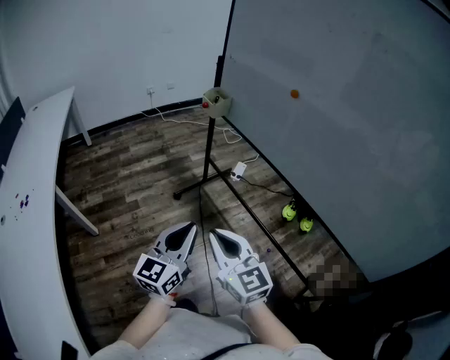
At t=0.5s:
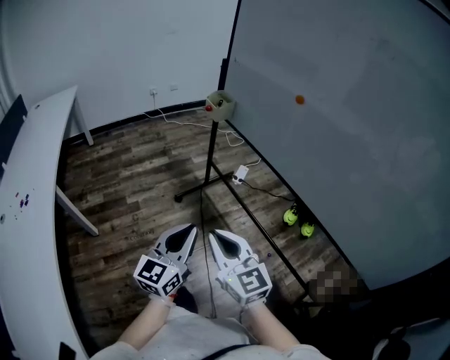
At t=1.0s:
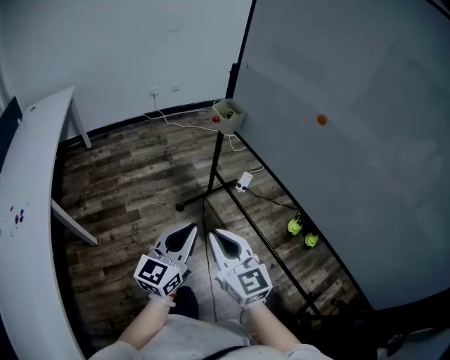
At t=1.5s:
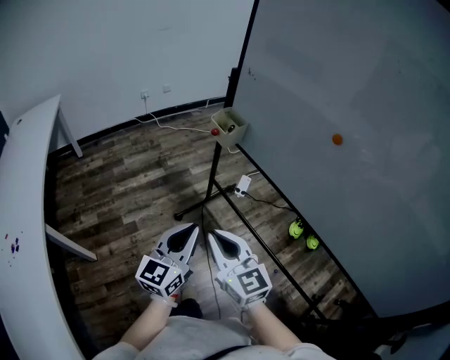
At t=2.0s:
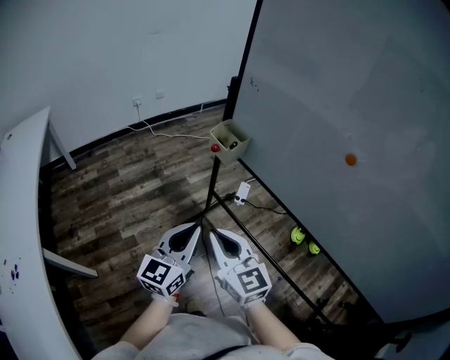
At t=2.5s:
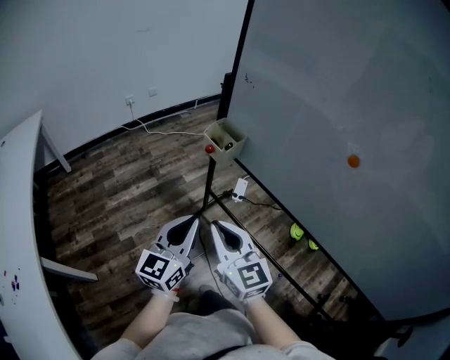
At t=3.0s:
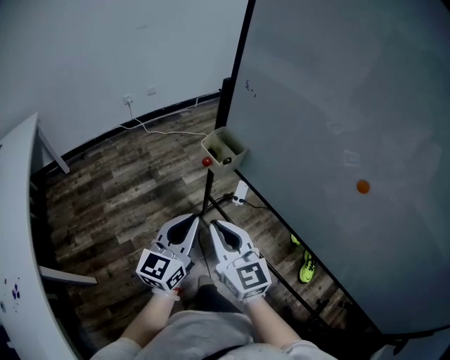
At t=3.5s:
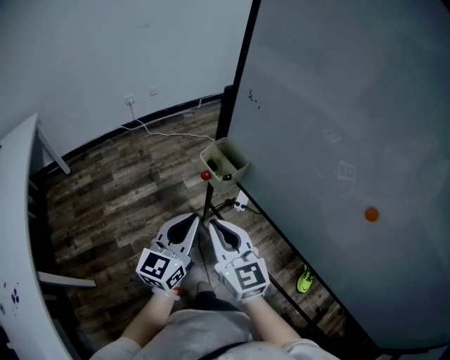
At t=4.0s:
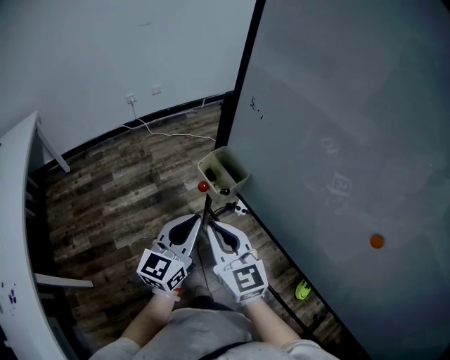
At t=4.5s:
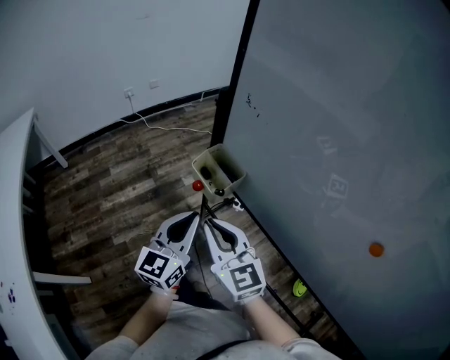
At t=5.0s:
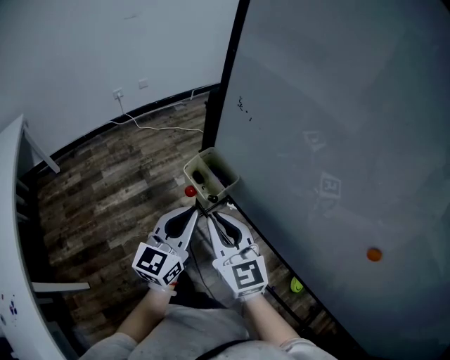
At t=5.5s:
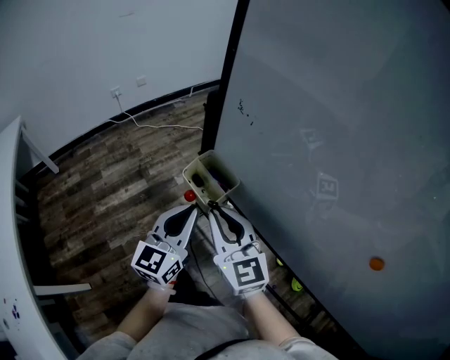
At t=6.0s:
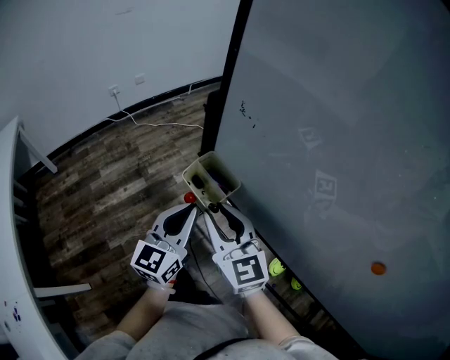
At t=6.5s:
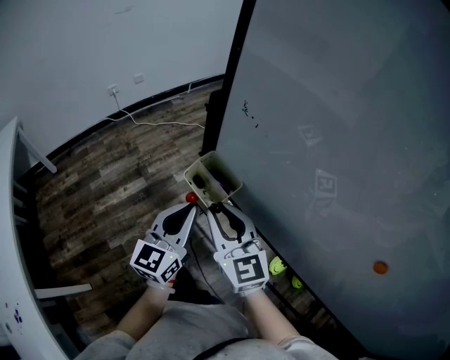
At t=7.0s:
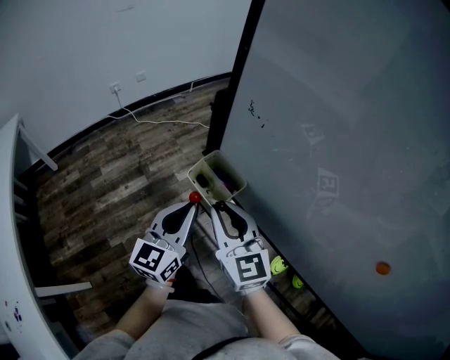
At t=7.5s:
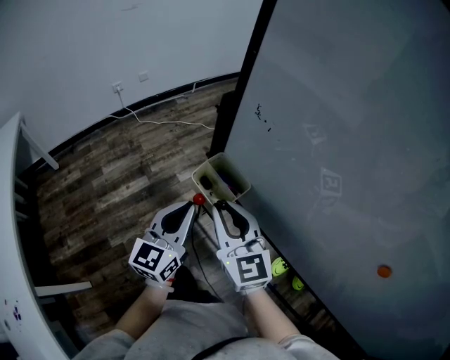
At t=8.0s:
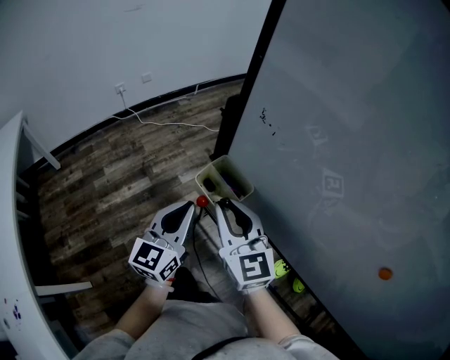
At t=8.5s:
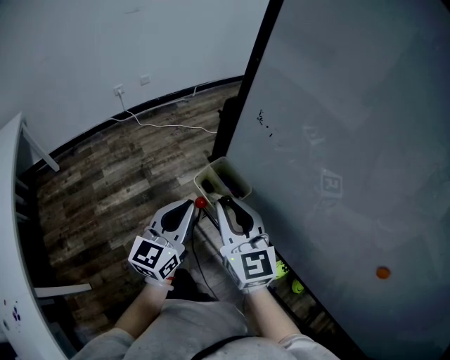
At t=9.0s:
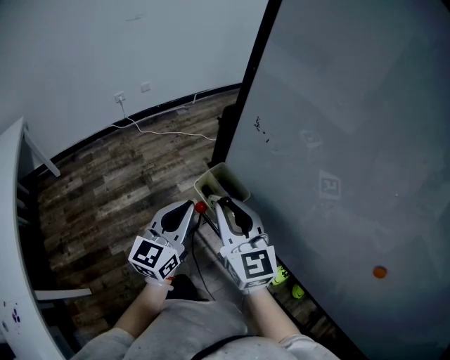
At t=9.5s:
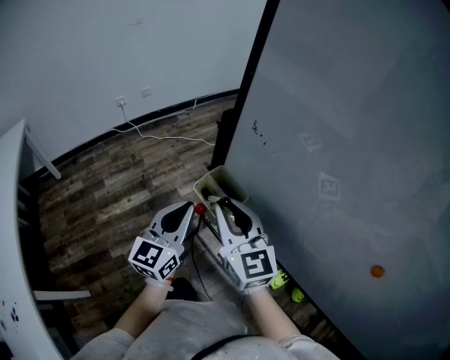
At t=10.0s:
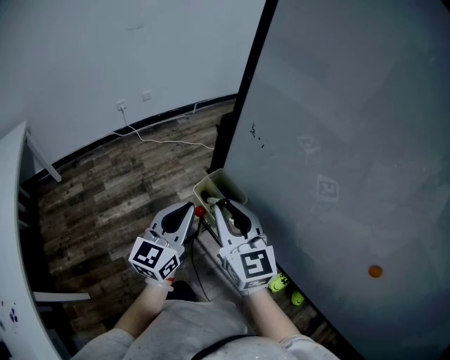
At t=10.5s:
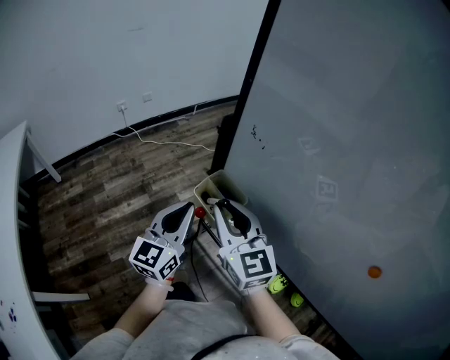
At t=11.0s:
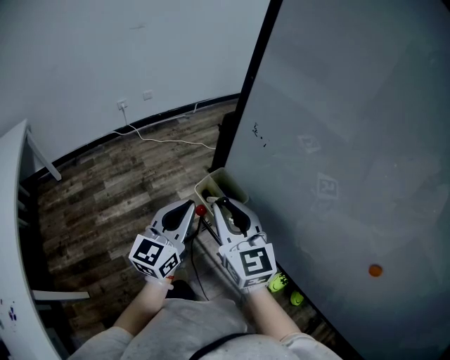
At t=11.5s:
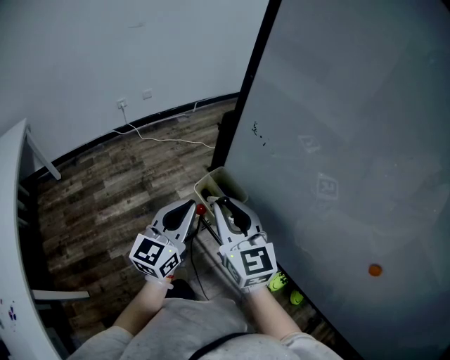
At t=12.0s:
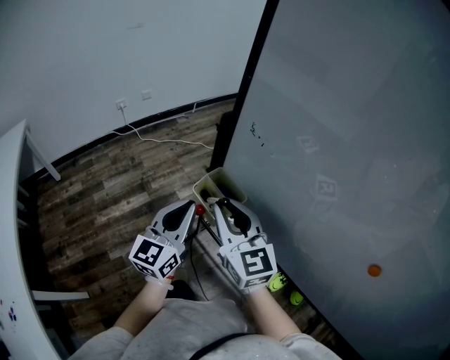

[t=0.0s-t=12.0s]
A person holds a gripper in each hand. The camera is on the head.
t=0.0s to t=2.0s: Both grippers move forward, roughly 35 cm.
t=2.0s to t=4.0s: The two grippers go roughly 20 cm forward.
t=4.0s to t=6.0s: Both grippers travel together forward, about 10 cm. The right gripper opens.
t=6.0s to t=10.0s: The grippers make only small movements.
t=10.0s to t=12.0s: Both grippers stay about where they are.

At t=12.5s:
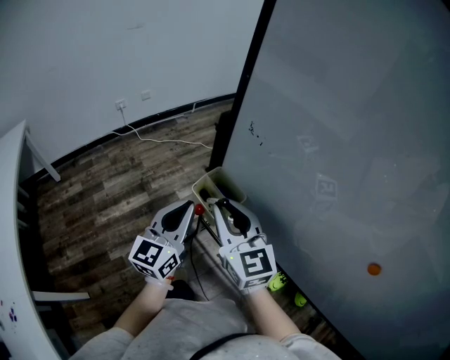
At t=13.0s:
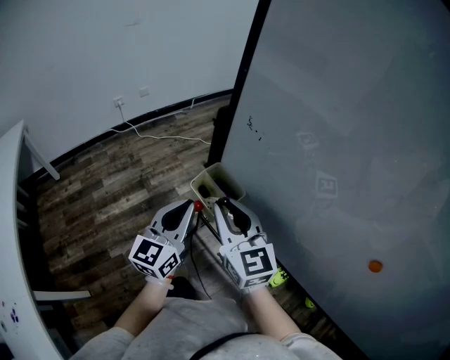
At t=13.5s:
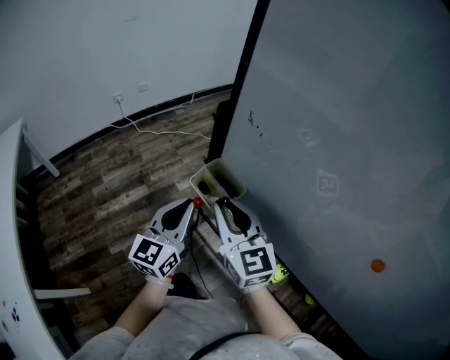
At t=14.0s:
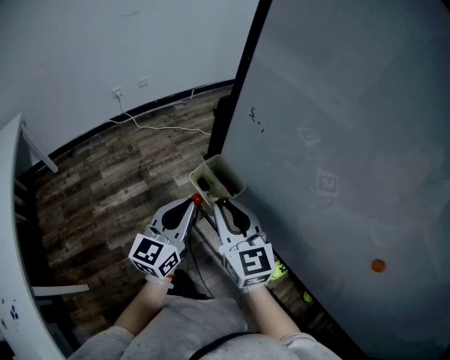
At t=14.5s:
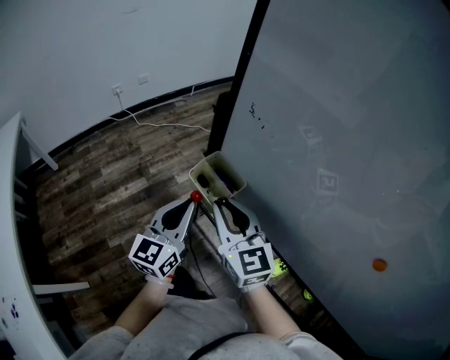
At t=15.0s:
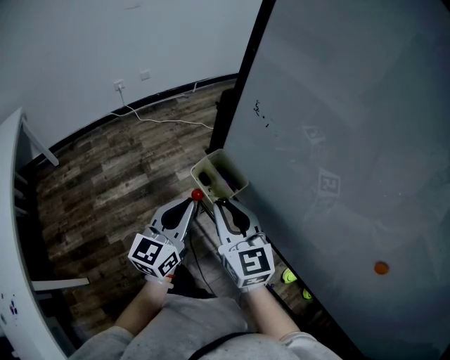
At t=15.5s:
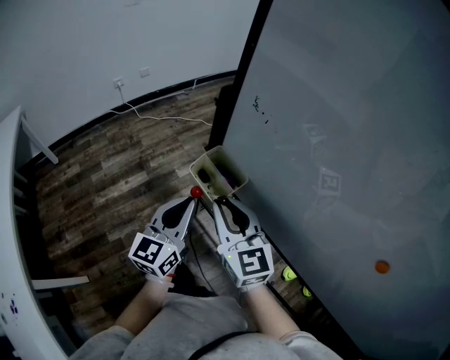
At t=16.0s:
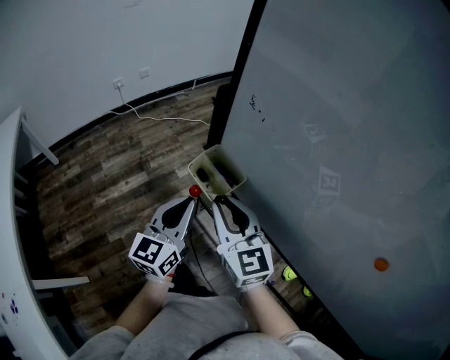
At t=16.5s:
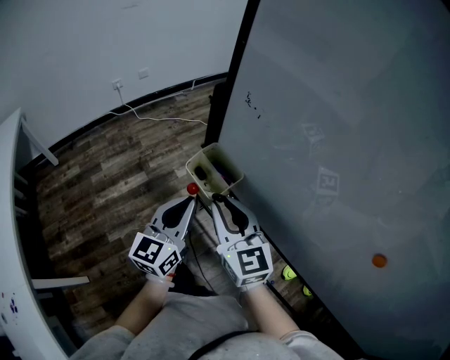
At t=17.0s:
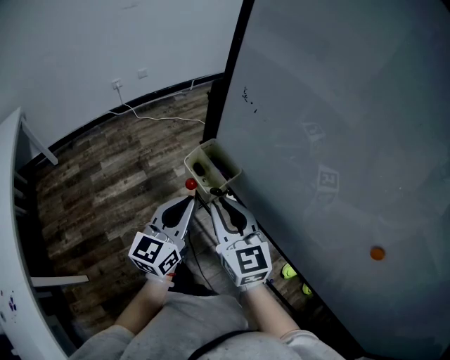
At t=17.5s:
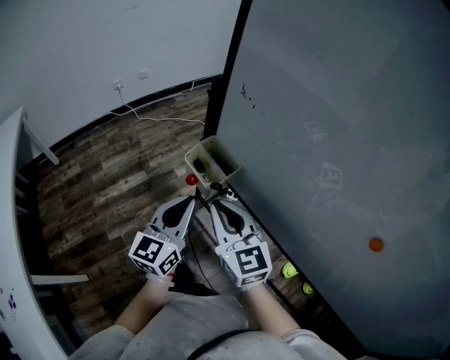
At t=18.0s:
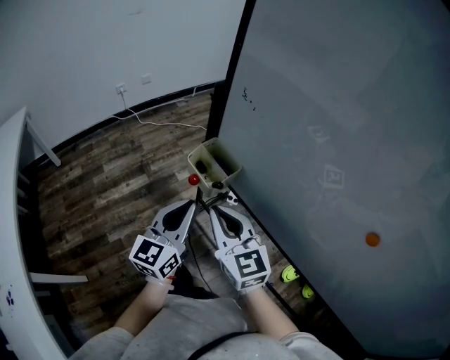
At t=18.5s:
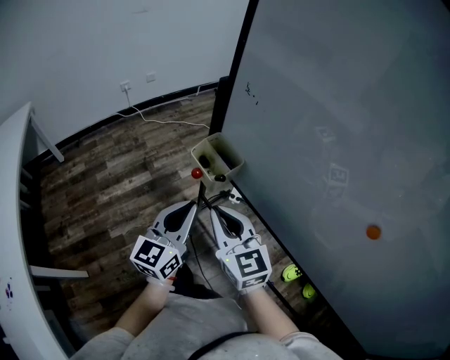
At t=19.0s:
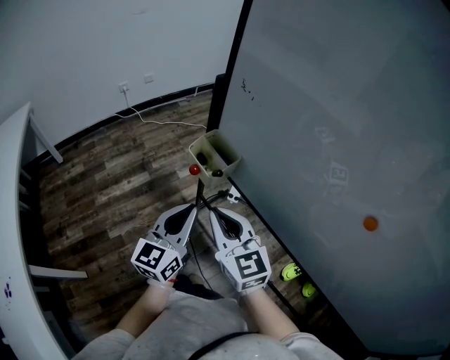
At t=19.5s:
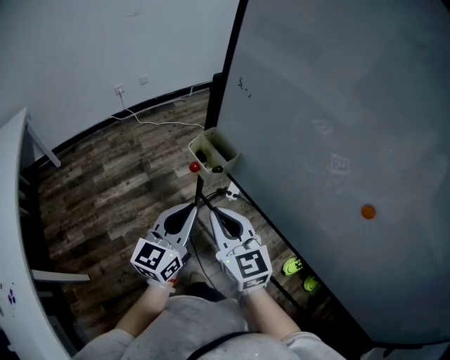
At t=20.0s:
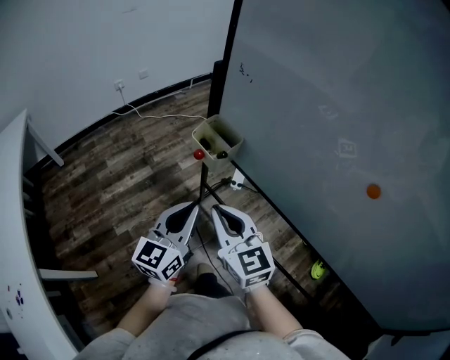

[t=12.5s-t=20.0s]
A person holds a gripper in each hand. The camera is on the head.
t=12.5s to t=16.5s: The grippers move only a little.
t=16.5s to t=18.0s: The right gripper goes approximately 5 cm backward.
t=18.0s to t=20.0s: The two grippers go roughly 10 cm backward.

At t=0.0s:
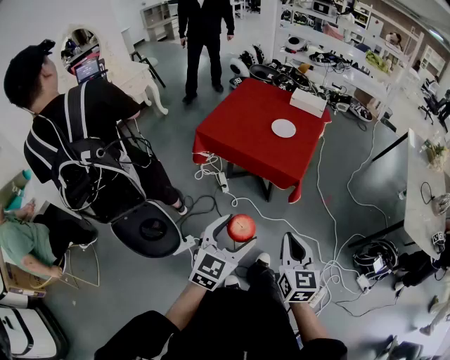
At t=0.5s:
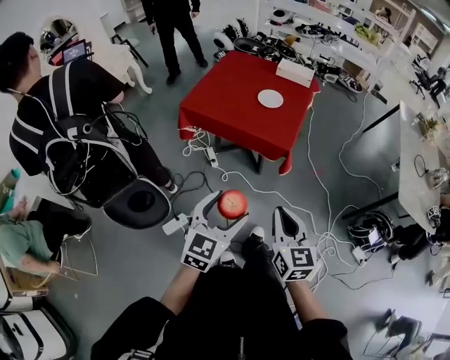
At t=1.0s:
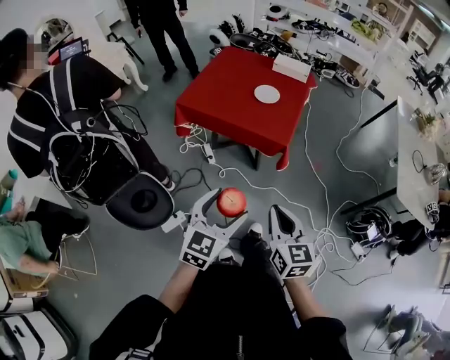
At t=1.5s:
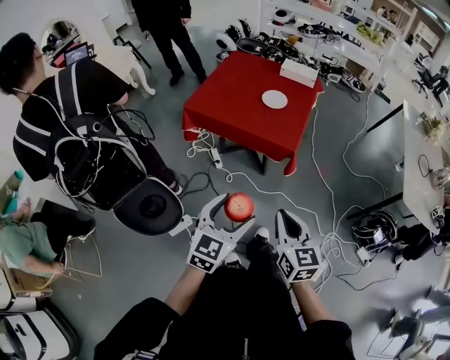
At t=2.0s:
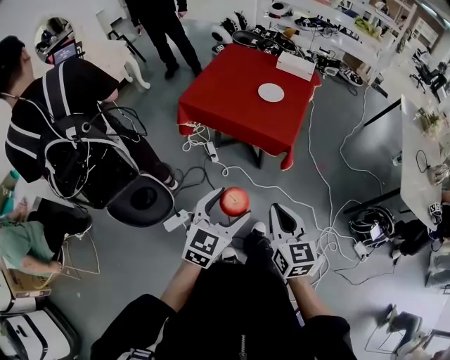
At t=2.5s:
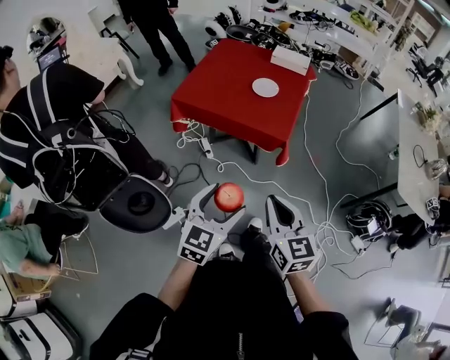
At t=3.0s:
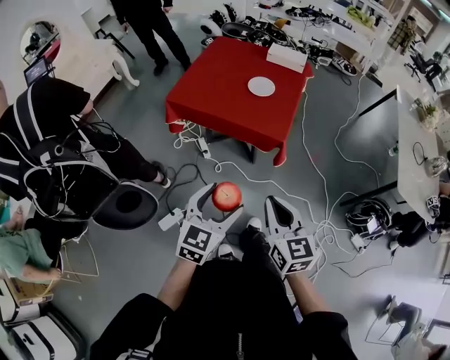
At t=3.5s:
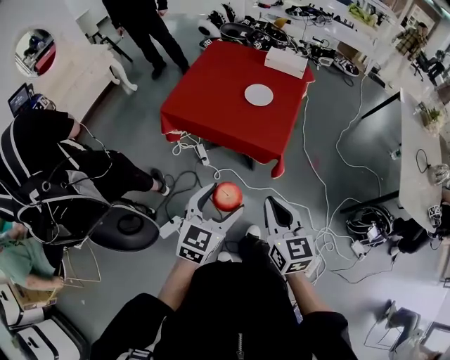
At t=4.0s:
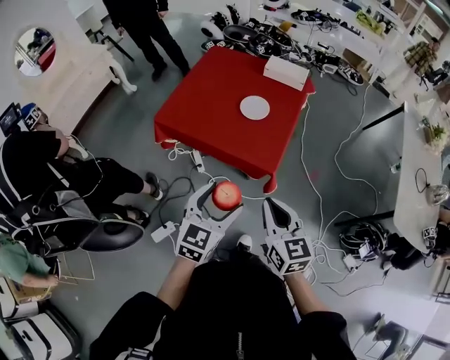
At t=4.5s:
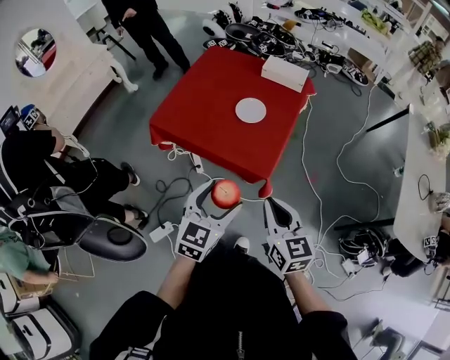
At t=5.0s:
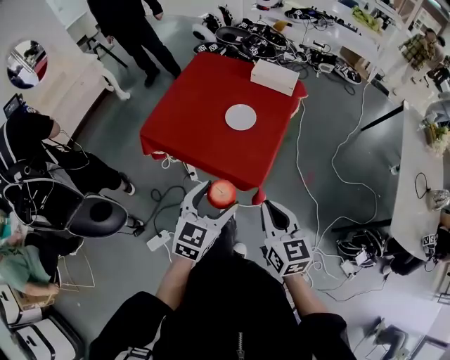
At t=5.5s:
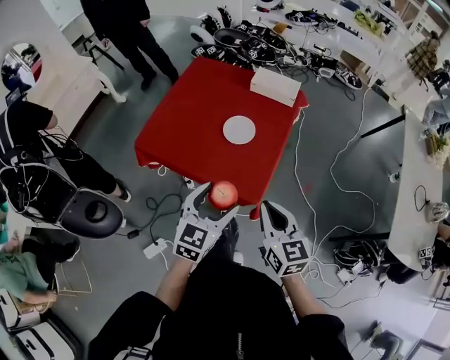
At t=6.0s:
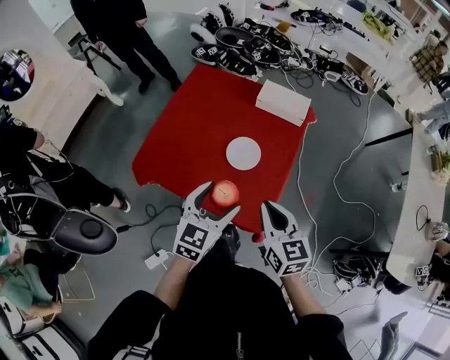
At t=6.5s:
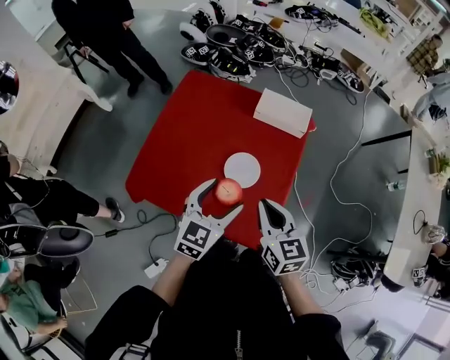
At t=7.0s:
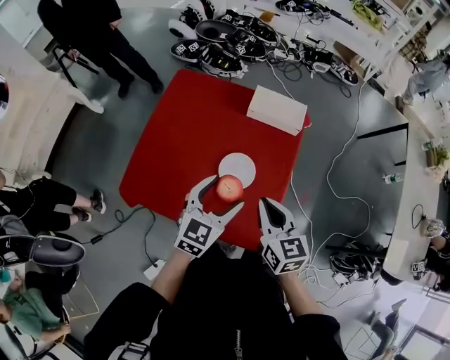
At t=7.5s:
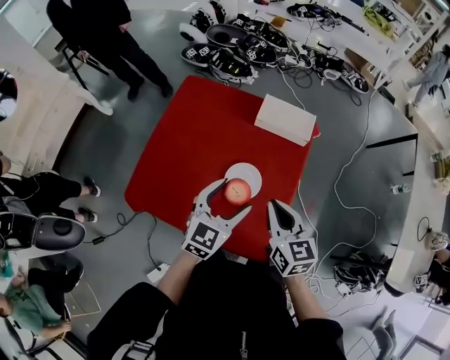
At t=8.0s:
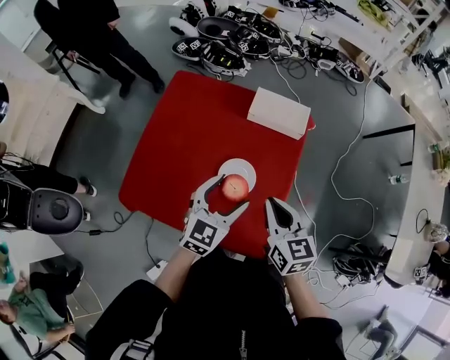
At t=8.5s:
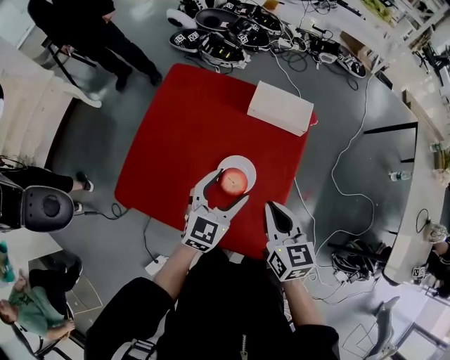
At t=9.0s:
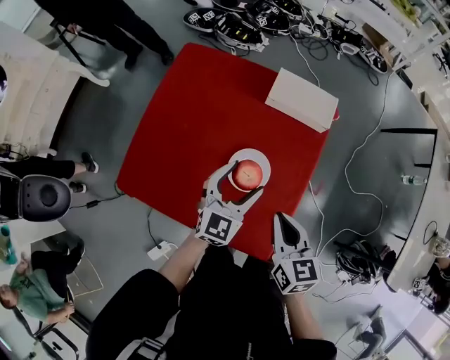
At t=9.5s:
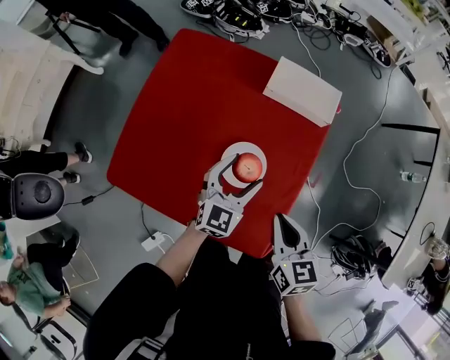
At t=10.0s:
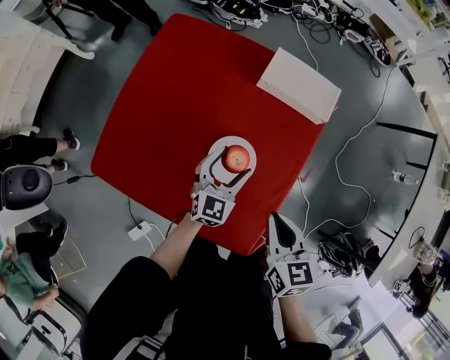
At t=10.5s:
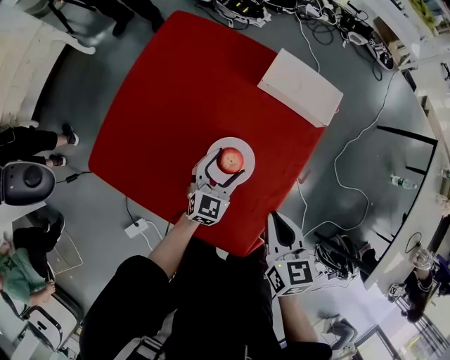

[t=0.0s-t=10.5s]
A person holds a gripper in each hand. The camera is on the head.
t=0.0s to t=2.0s: The grippers move only a little.
t=2.0s to t=4.0s: Both grippers move forward, roughly 20 cm.
t=4.0s to t=6.5s: Both grippers move forward, roughly 40 cm.
t=6.5s to t=8.5s: The left gripper heads forward, covering approximately 10 cm. The right gripper travels forward by roughly 5 cm.
t=8.5s to t=10.5s: The left gripper is displaced downward by some 20 cm. Meanwhile the right gripper shifts approximately 10 cm downward.
